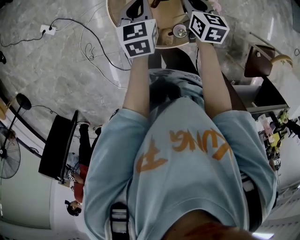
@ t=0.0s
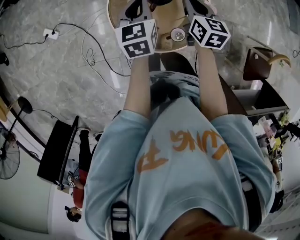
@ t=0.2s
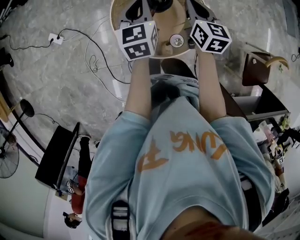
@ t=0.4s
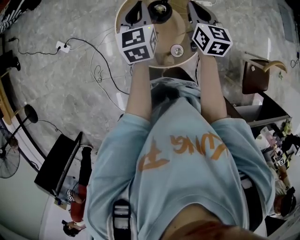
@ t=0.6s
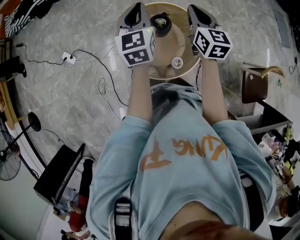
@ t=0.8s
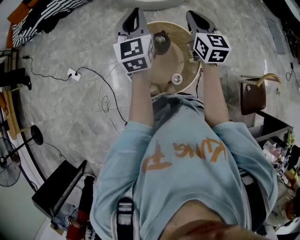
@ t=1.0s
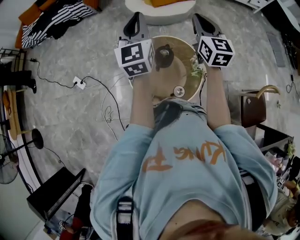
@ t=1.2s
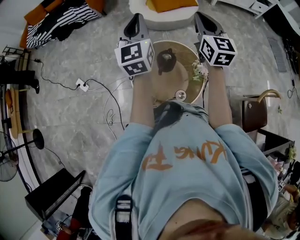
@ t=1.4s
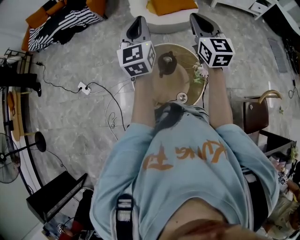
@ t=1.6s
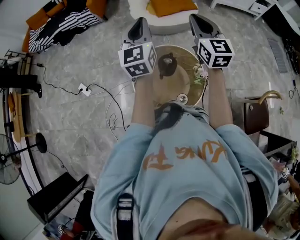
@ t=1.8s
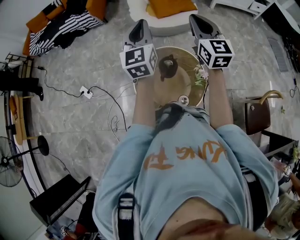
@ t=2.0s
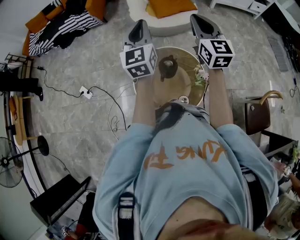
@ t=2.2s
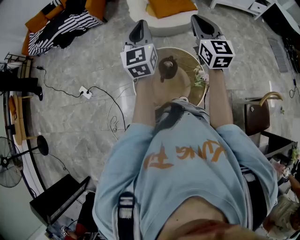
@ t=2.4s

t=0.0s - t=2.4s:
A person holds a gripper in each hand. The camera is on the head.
t=0.0s - t=1.2s: Both grippers move upward, roughly 35 cm. The right gripper tilts its fingers some 30 degrees upward, while the left gripper points its fingers roughly 40 degrees further upward.
t=1.2s - t=2.4s: The grippers stay close to where they were, moving slightly.

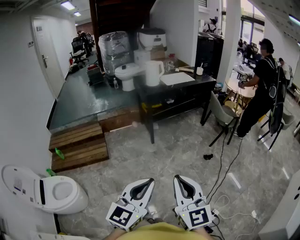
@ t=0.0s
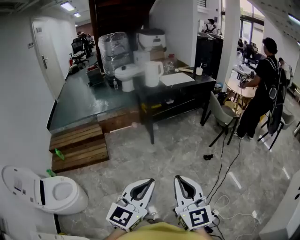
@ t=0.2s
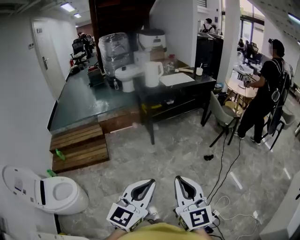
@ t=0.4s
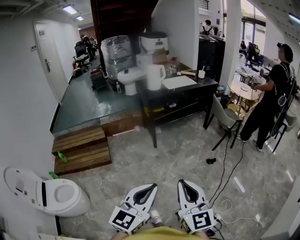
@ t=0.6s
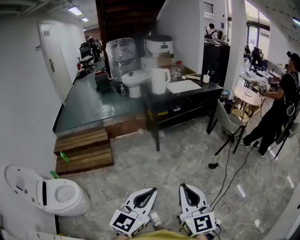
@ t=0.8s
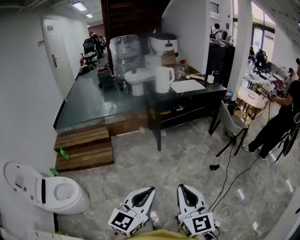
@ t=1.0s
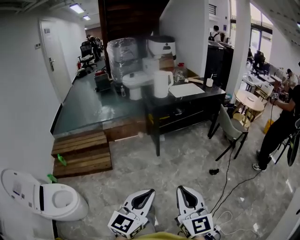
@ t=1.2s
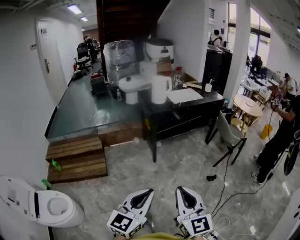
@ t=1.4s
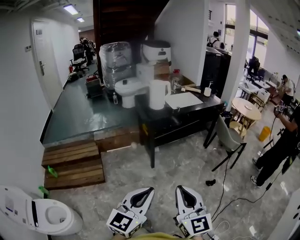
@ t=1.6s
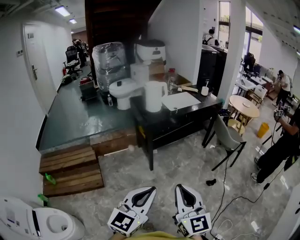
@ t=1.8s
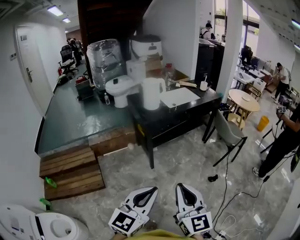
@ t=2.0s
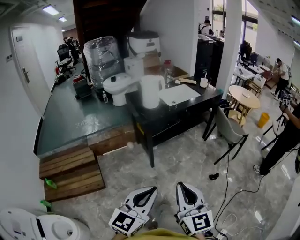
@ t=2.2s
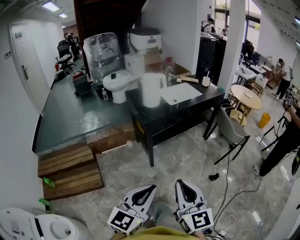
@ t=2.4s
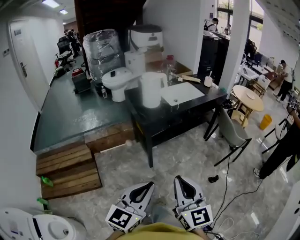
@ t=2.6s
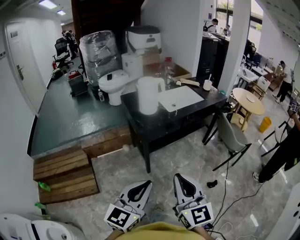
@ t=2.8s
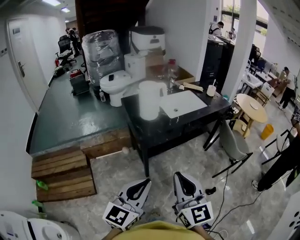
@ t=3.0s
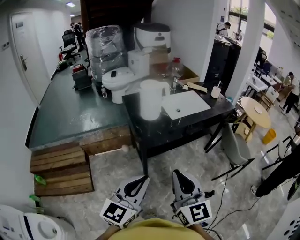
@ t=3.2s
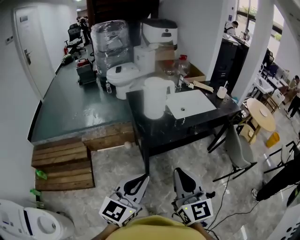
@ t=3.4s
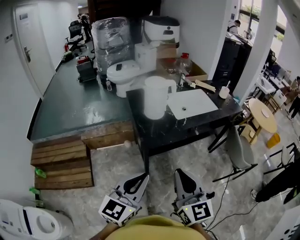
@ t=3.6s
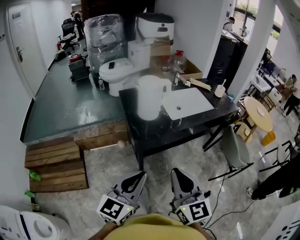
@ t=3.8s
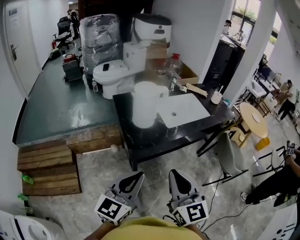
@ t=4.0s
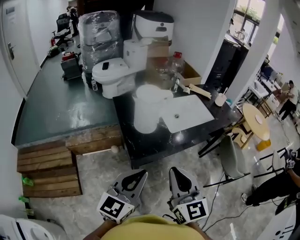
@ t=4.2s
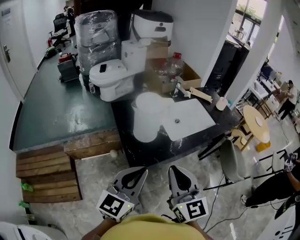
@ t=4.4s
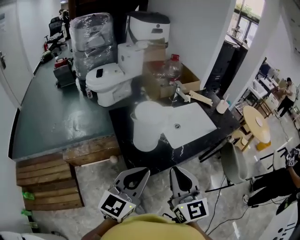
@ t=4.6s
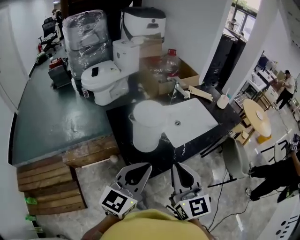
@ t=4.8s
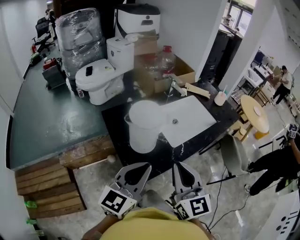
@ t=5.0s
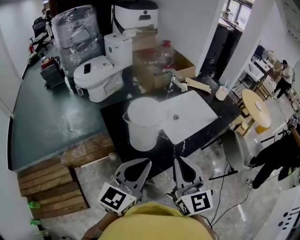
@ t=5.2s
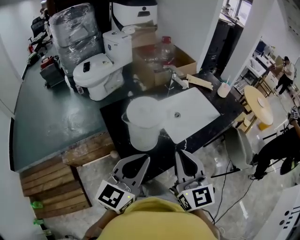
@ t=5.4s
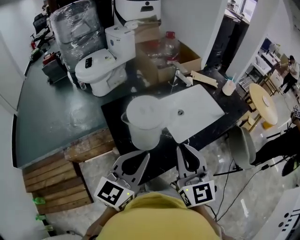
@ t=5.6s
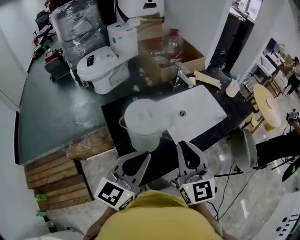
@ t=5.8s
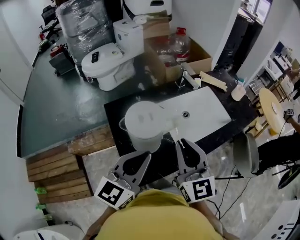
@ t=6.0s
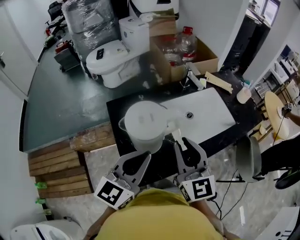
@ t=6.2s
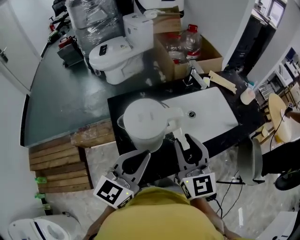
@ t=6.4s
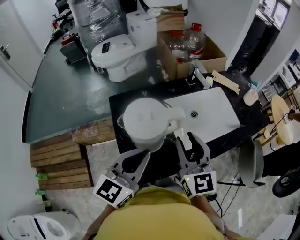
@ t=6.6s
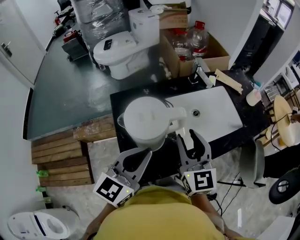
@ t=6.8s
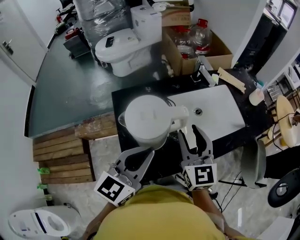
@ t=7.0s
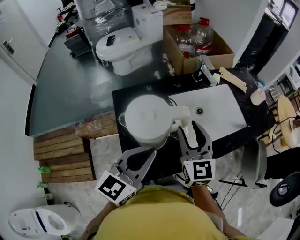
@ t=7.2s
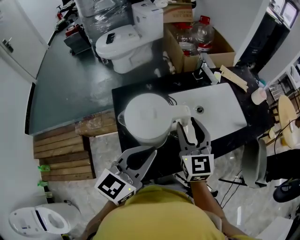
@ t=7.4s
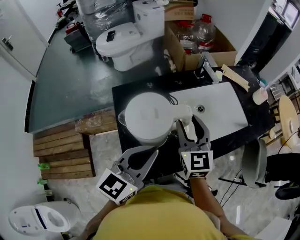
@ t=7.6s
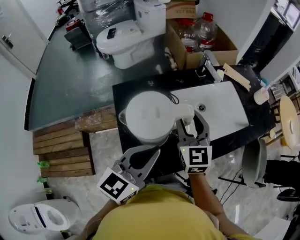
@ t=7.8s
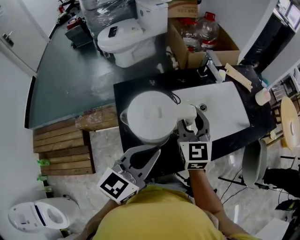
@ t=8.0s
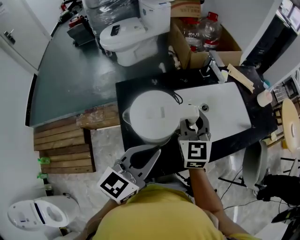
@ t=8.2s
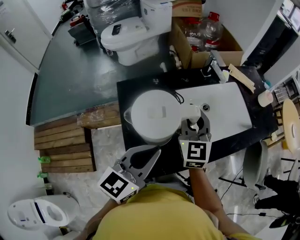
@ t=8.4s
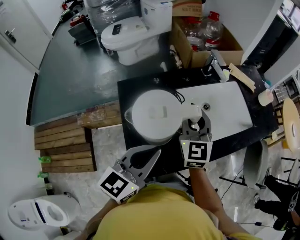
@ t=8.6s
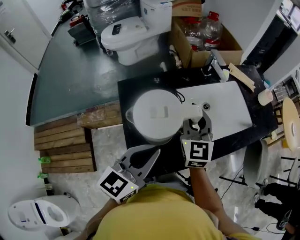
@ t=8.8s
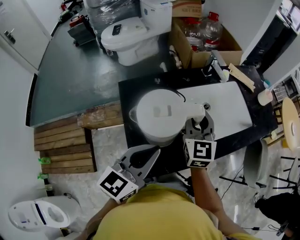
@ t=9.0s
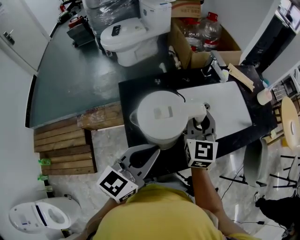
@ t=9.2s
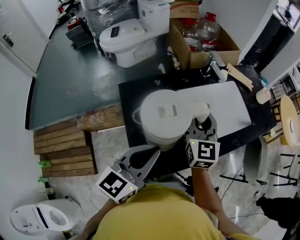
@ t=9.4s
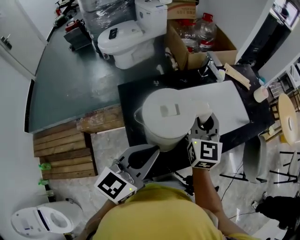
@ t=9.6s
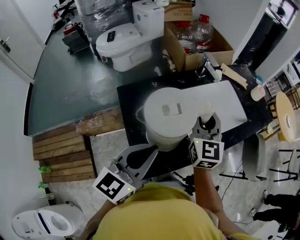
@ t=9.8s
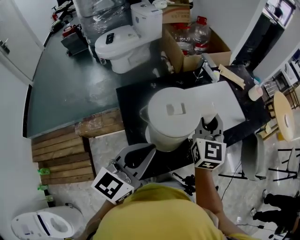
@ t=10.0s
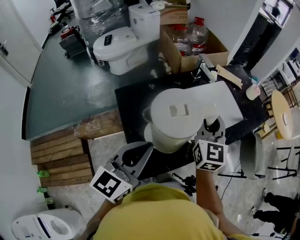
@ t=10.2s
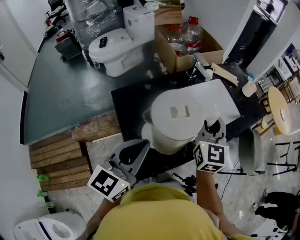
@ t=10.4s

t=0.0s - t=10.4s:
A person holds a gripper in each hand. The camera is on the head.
t=0.0s - t=1.4s: The grippers both shift forward by about 15 cm.
t=1.4s - t=3.0s: Both grippers travel together forward, some 40 cm.
t=3.0s - t=4.4s: Both grippers travel together forward, roughly 30 cm.
t=4.4s - t=6.0s: Both grippers move forward, some 20 cm.
t=6.0s - t=7.4s: The right gripper goes approximately 15 cm forward and downward, and opens up. The left gripper shifts by approximately 5 cm.
t=7.4s - t=9.0s: The right gripper closes its fingers.
t=9.0s - t=10.4s: The left gripper shifts by some 5 cm; the right gripper travels upward and to the right by about 10 cm.

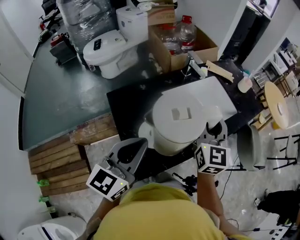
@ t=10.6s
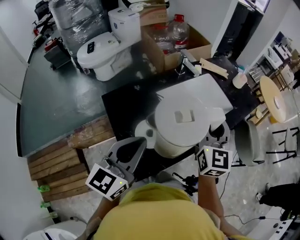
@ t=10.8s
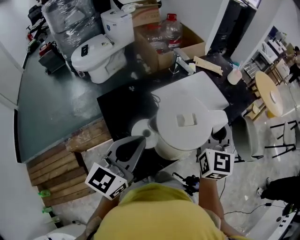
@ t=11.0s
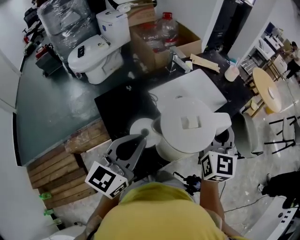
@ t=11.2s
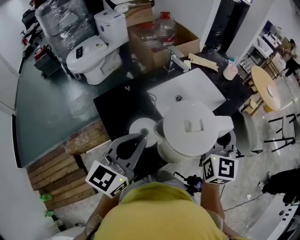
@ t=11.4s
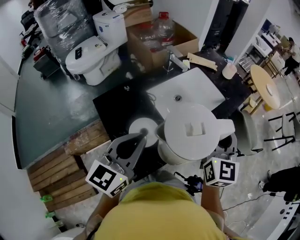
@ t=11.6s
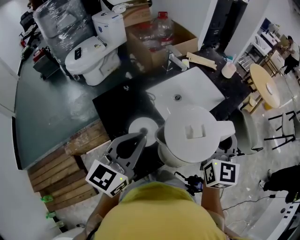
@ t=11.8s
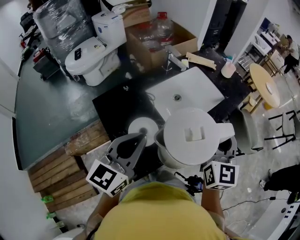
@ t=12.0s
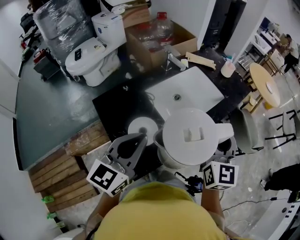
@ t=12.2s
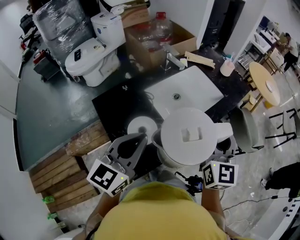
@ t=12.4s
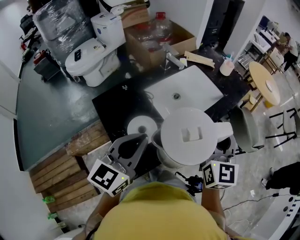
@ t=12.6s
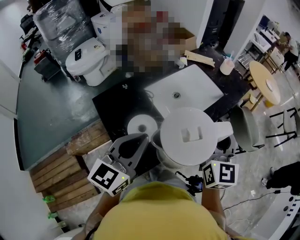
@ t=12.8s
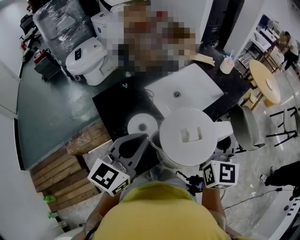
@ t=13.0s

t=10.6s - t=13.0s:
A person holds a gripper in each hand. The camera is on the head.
t=10.6s - t=11.8s: The right gripper shifts roughly 10 cm to the right and backward.
t=11.8s - t=13.0s: The grippers stay close to where they were, moving slightly.

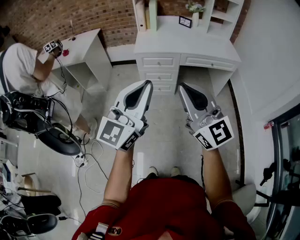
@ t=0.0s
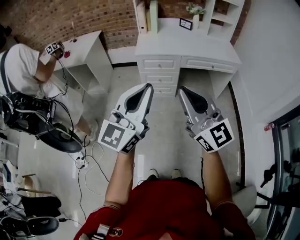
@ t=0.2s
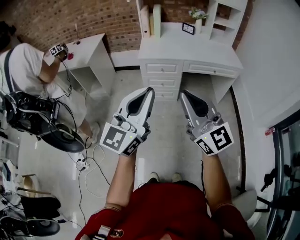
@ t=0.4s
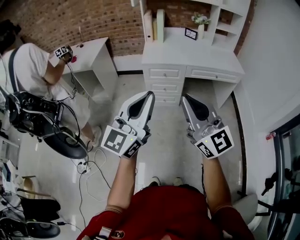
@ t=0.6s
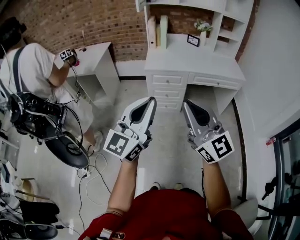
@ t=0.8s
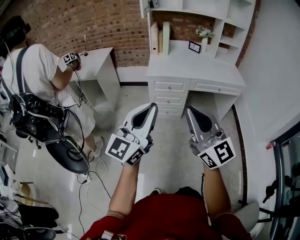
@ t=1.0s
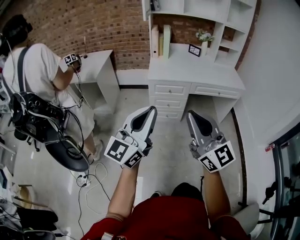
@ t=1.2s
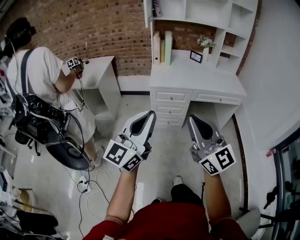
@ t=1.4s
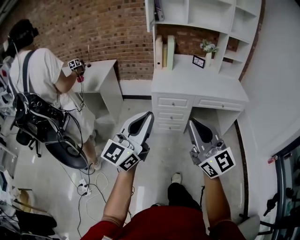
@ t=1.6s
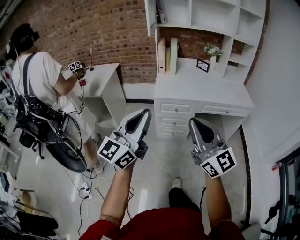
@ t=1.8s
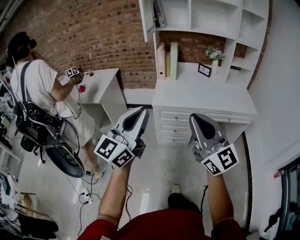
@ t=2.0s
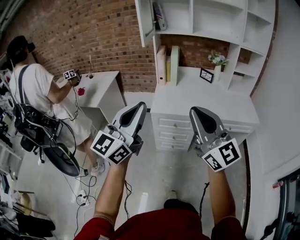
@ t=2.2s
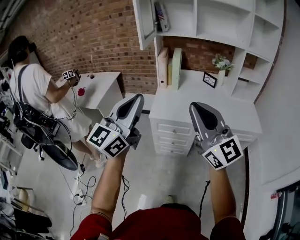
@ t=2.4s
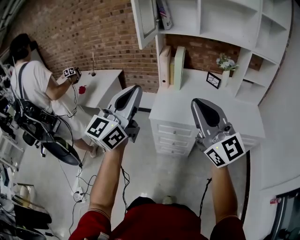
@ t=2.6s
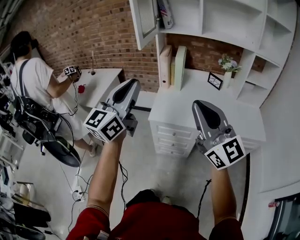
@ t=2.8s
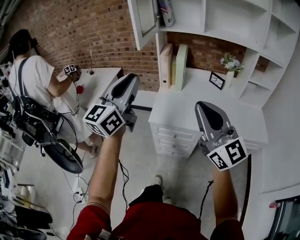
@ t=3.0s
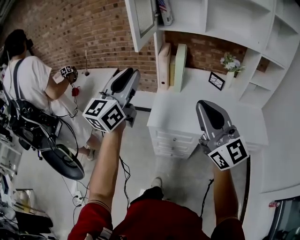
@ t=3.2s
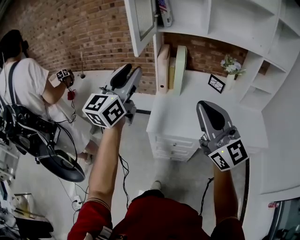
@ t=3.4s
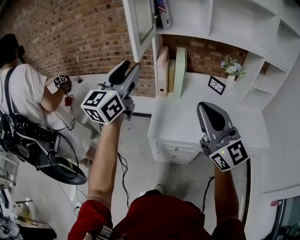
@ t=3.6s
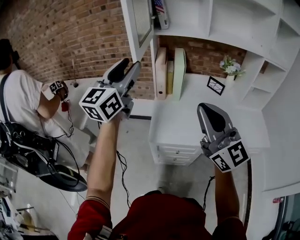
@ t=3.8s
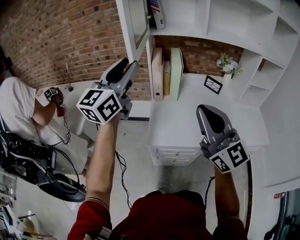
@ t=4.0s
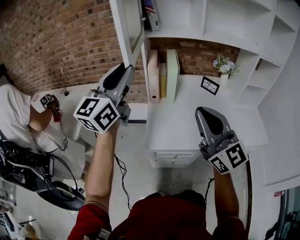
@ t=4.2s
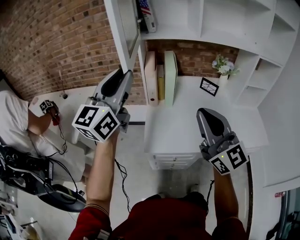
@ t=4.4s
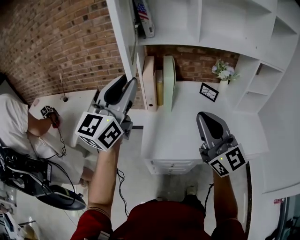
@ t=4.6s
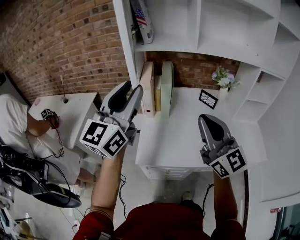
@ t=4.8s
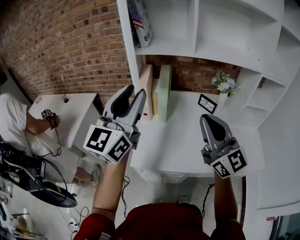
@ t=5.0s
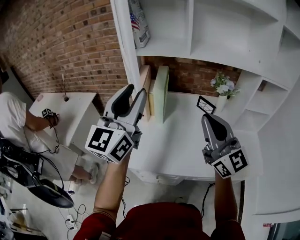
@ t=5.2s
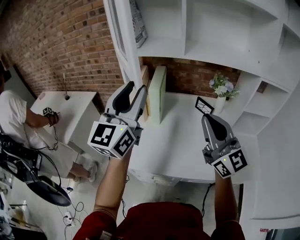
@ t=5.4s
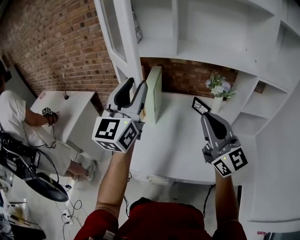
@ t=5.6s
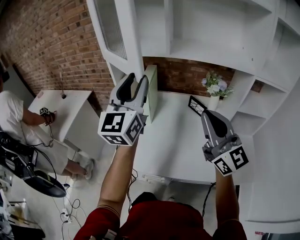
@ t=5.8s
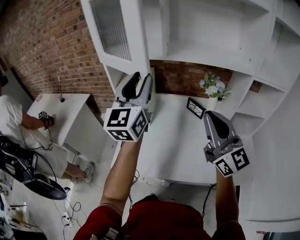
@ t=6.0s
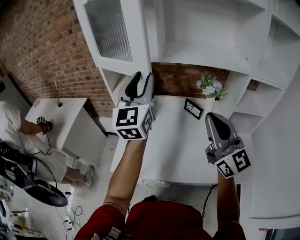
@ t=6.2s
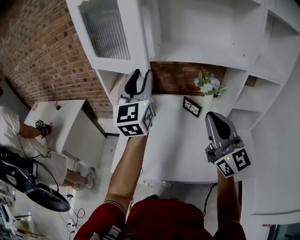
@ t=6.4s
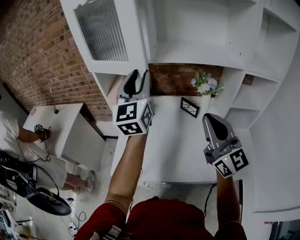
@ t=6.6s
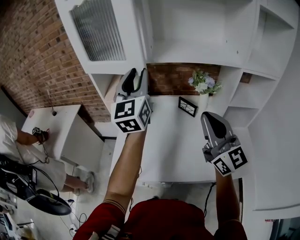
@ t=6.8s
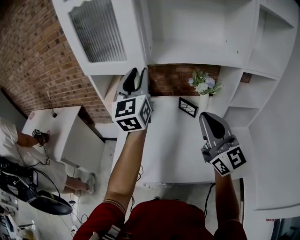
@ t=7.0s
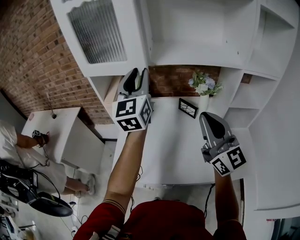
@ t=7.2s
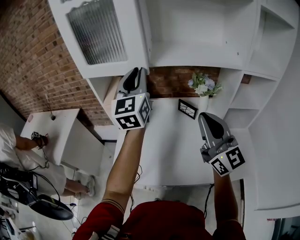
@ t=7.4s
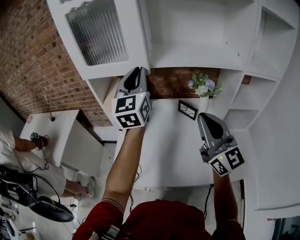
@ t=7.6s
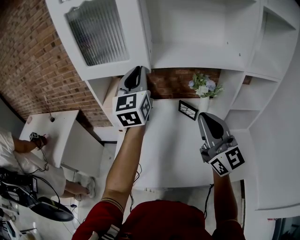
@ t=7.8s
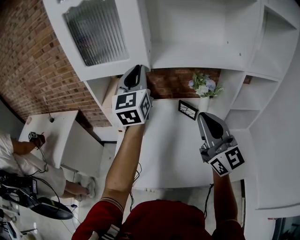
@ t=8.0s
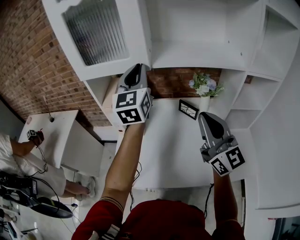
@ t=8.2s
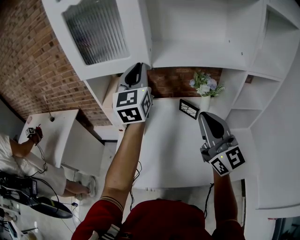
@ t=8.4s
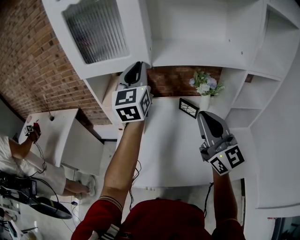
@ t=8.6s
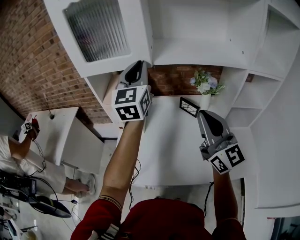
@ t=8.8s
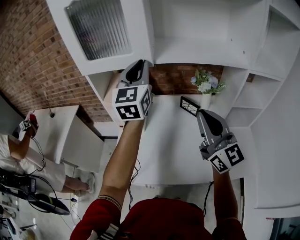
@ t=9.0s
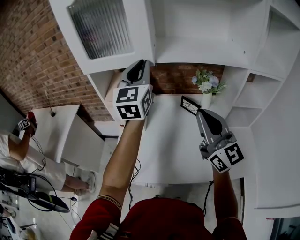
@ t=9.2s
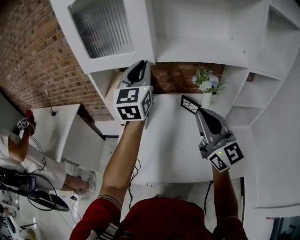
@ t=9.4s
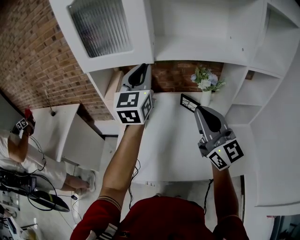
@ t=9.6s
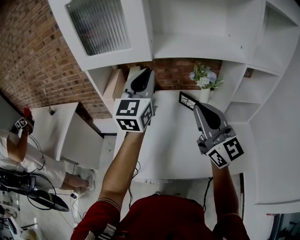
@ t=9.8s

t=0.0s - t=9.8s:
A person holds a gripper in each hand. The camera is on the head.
t=0.0s - t=1.4s: Both grippers move to the left, roughly 10 cm.
t=1.4s - t=2.8s: Both grippers travel together forward, approximately 40 cm.
t=2.8s - t=4.2s: The two grippers go approximately 25 cm forward.
t=4.2s - t=5.6s: The right gripper is displaced to the right and forward by roughly 25 cm, while the left gripper is displaced to the right by some 20 cm.
t=5.6s - t=7.0s: The right gripper travels to the right by roughly 5 cm. Meanwhile the left gripper travels forward and to the right by roughly 15 cm.
t=7.0s - t=8.4s: The left gripper is displaced forward by approximately 5 cm, and closes.
t=8.4s - t=9.8s: The left gripper is displaced backward by some 5 cm.
